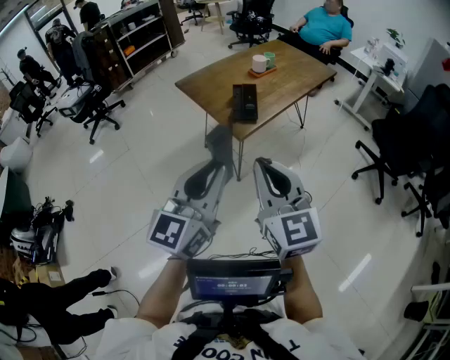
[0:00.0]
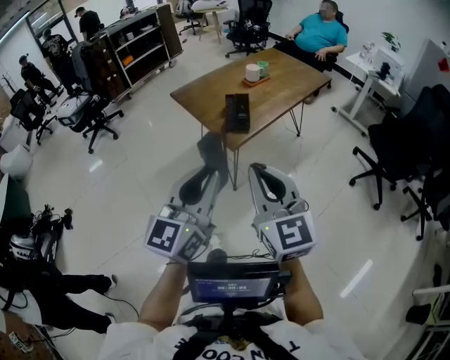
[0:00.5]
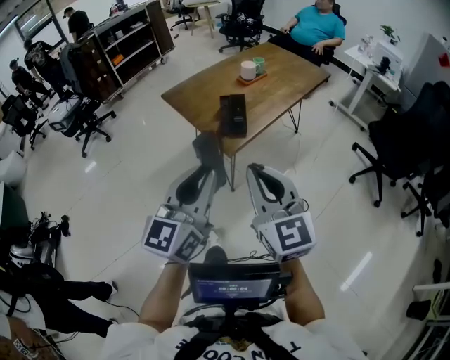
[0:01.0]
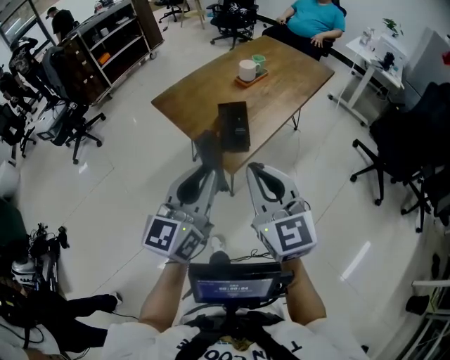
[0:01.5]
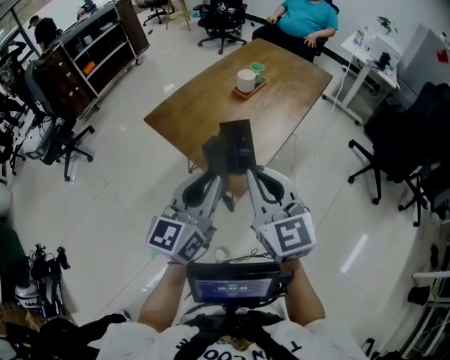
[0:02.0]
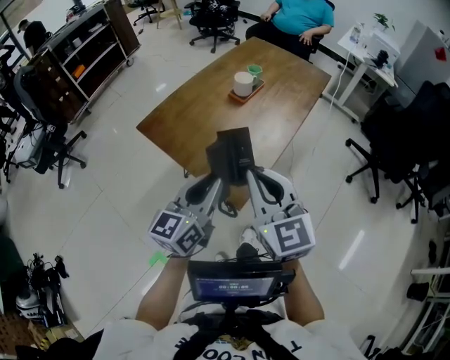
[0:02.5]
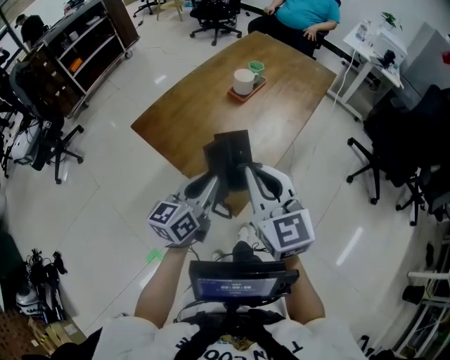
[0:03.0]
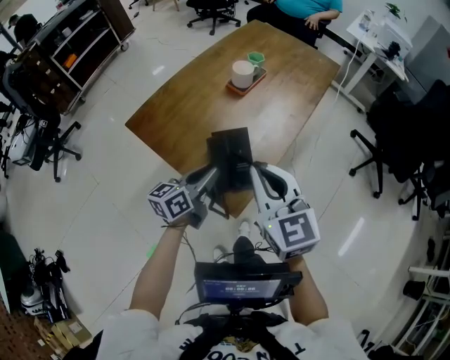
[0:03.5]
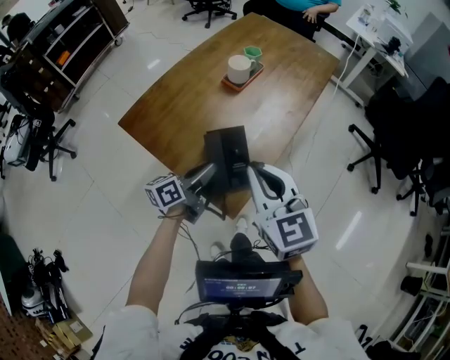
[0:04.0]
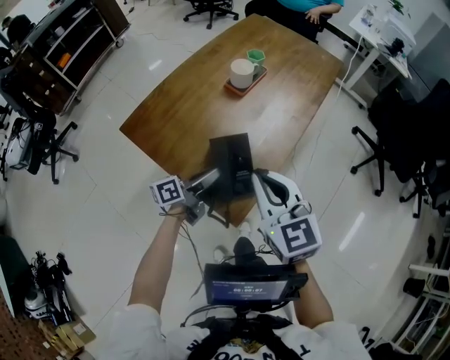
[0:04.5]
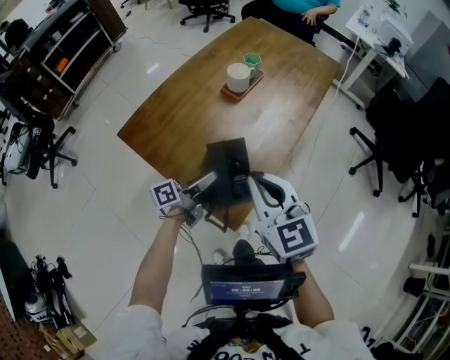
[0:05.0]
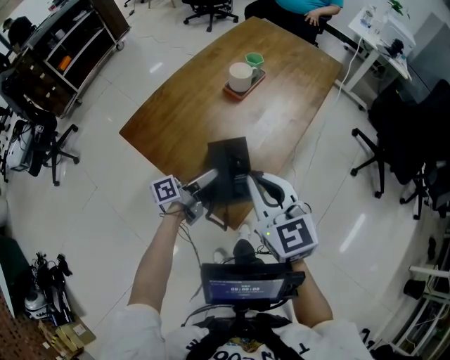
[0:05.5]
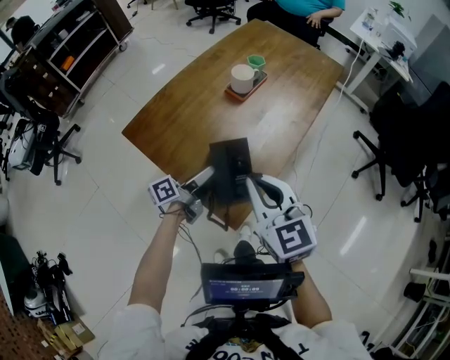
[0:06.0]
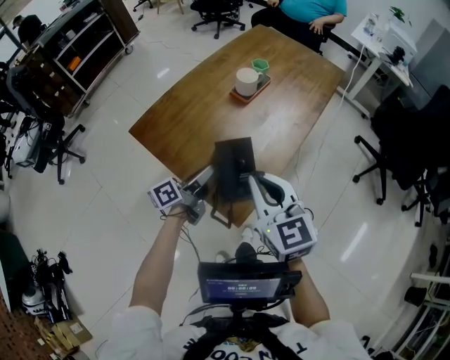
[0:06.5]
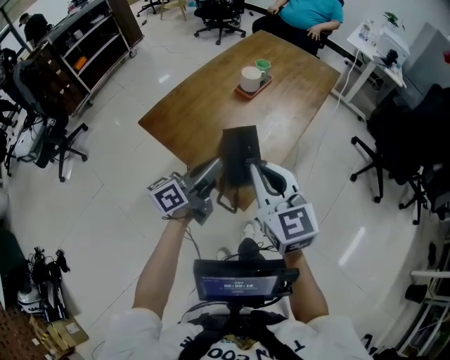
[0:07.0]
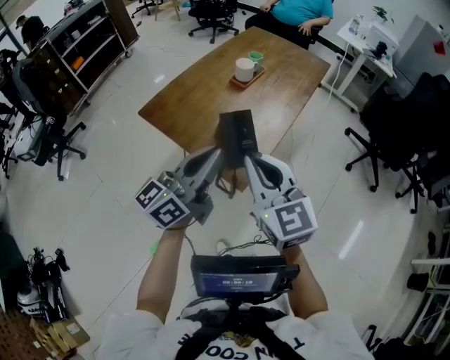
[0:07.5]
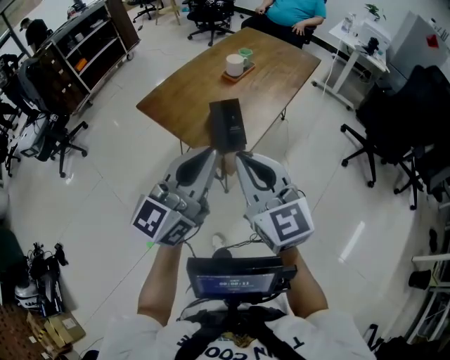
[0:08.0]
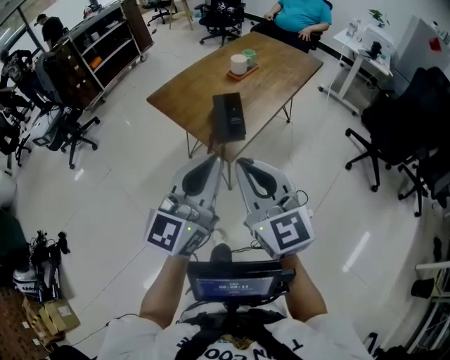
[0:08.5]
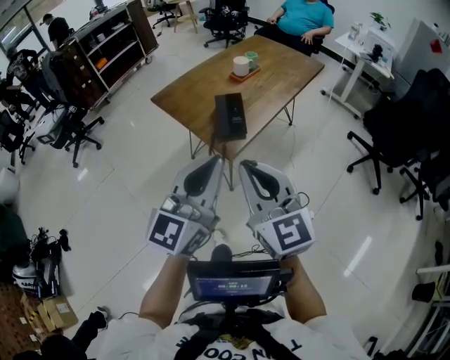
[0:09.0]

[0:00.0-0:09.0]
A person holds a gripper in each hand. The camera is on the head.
0:00.0 to 0:02.0: The two grippers go some 30 cm forward.
0:02.0 to 0:04.5: The right gripper is displaced forward and downward by some 20 cm. The left gripper shifts some 35 cm downward and forward, and rotates around the line of its fingers by about 50 degrees, counterclockwise from behind.
0:04.5 to 0:07.0: The left gripper heads upward and backward, covering approximately 15 cm, turns by about 20 degrees, and opens, then closes once more, while the right gripper is displaced backward by about 5 cm.
0:07.0 to 0:09.0: The left gripper goes about 35 cm backward and upward, and twists roughly 50 degrees clockwise, seen from behind; the right gripper goes roughly 25 cm backward.

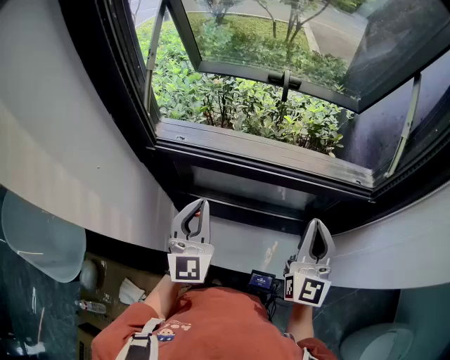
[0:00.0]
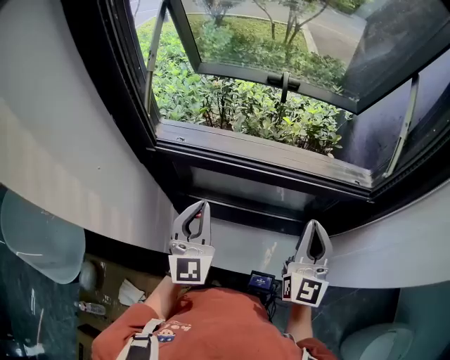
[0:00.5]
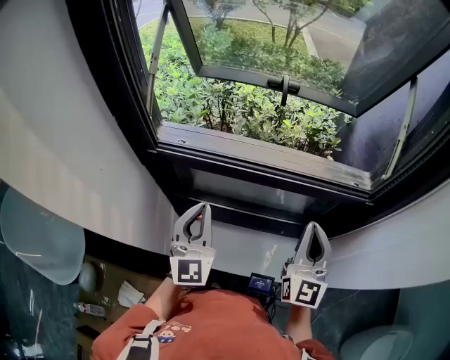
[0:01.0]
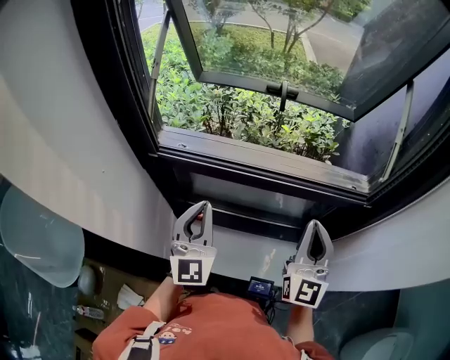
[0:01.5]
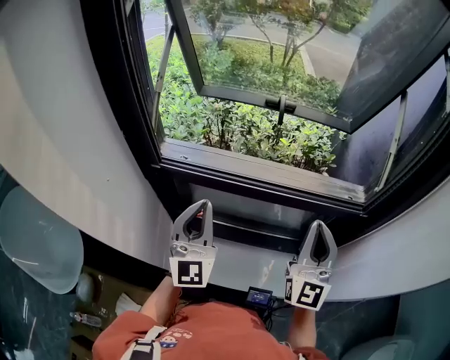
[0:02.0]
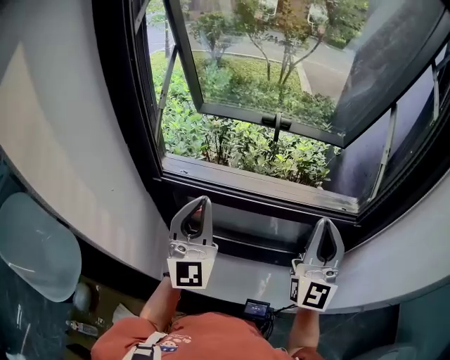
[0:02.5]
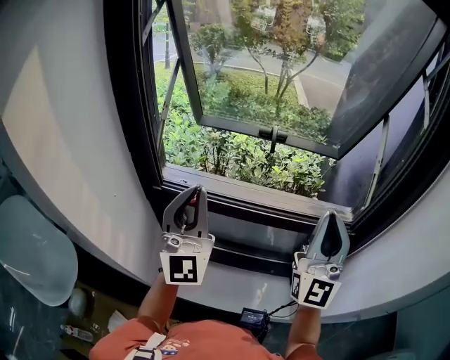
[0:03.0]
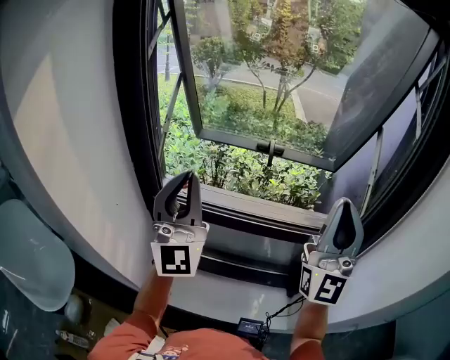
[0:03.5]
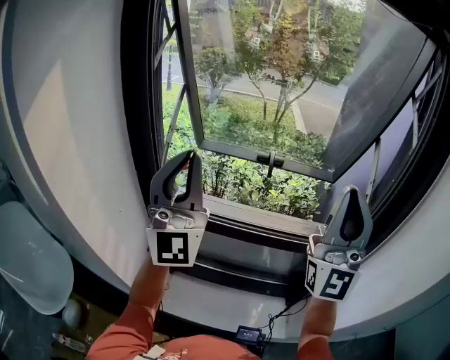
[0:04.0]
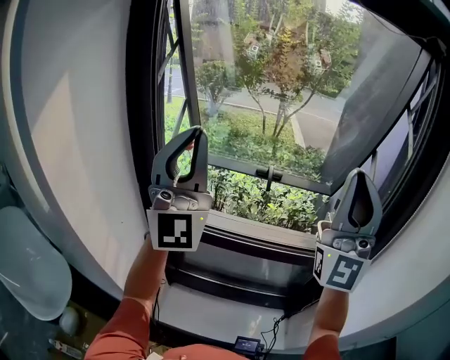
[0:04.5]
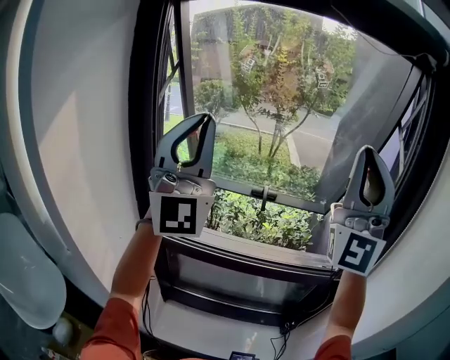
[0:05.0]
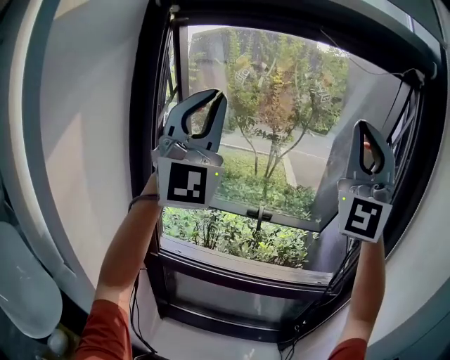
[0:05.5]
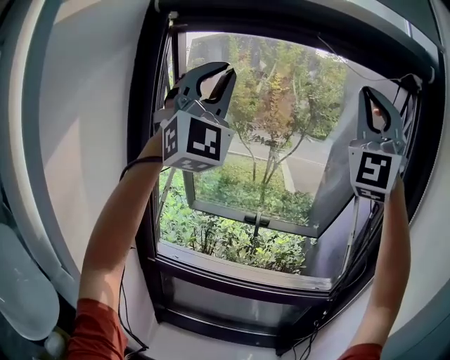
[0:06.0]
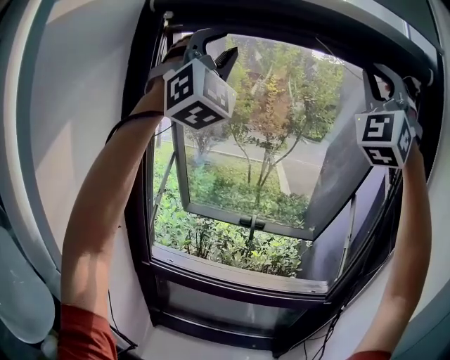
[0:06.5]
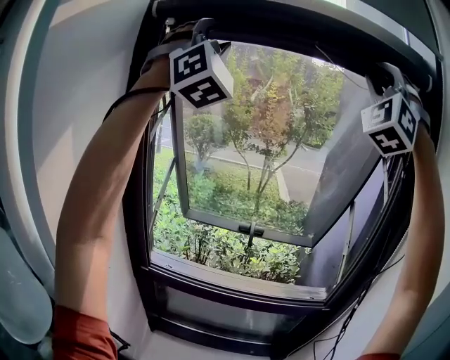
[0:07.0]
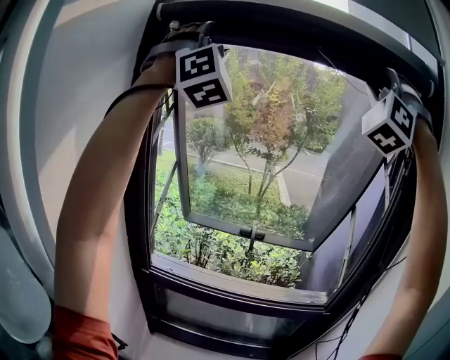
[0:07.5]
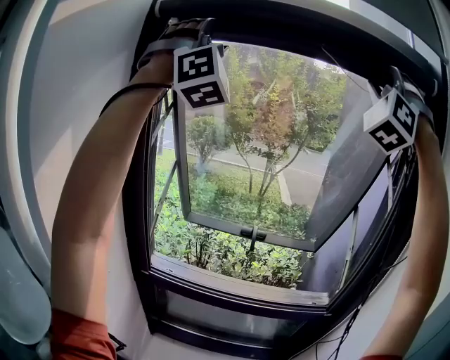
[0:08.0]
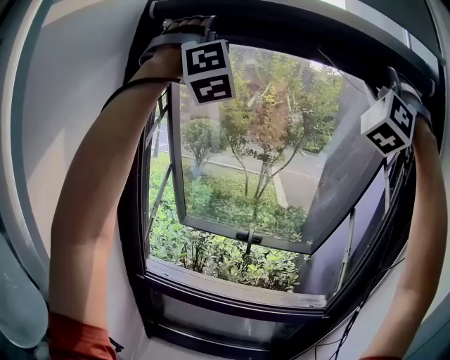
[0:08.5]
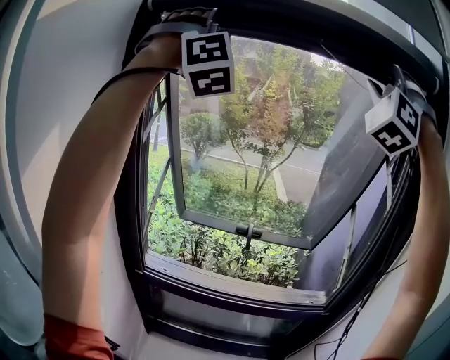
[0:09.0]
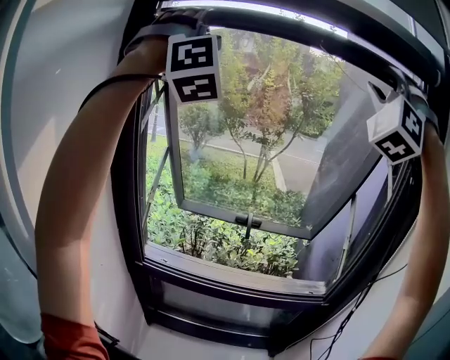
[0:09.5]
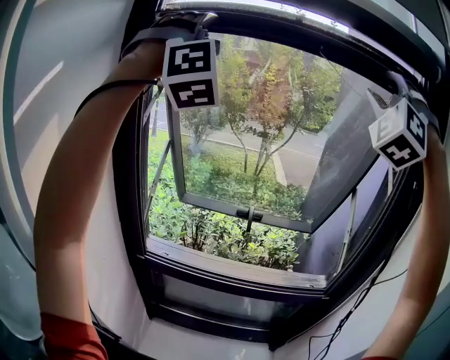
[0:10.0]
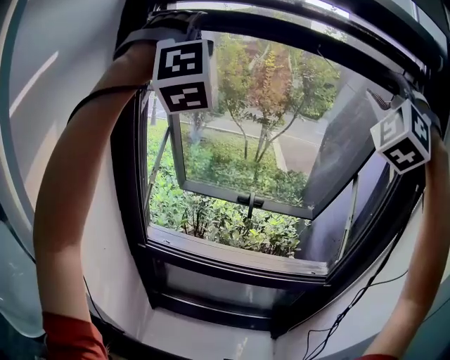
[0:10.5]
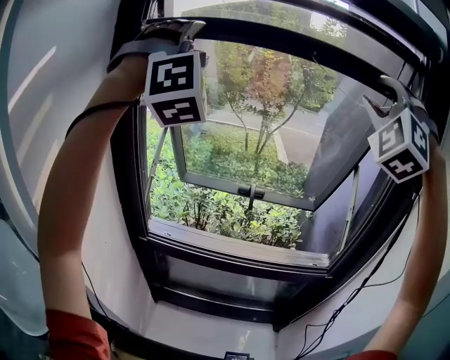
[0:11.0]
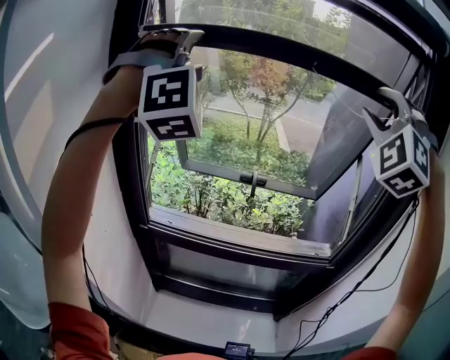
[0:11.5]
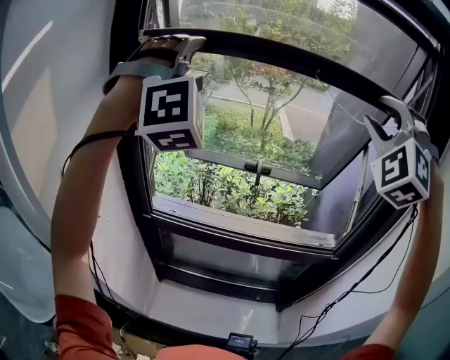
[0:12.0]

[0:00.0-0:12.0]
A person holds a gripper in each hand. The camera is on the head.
0:00.0 to 0:02.0: Both grippers travel together upward, roughly 5 cm.
0:02.0 to 0:04.0: Both grippers move upward, some 25 cm. The right gripper tips its fingers upward by roughly 30 degrees. The left gripper angles its fingers upward, by about 30 degrees.
0:04.0 to 0:06.0: The grippers both shift upward by some 30 cm. The left gripper swivels some 30 degrees. Meanwhile the right gripper rotates around the line of its fingers by some 40 degrees, counterclockwise from behind.
0:06.0 to 0:08.0: The right gripper travels forward, upward and to the right by about 10 cm, swivels about 40 degrees, and opens, while the left gripper heads upward and forward, covering some 10 cm, turns by roughly 40 degrees, and opens.
0:08.0 to 0:10.0: The grippers both shift downward by some 5 cm.
0:10.0 to 0:12.0: The two grippers go about 15 cm downward.

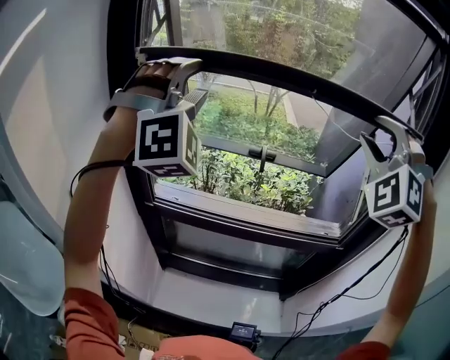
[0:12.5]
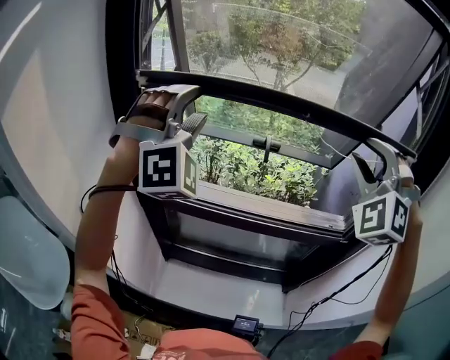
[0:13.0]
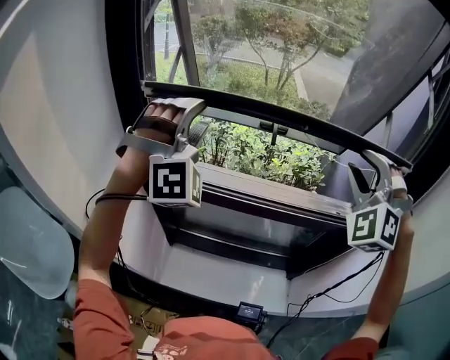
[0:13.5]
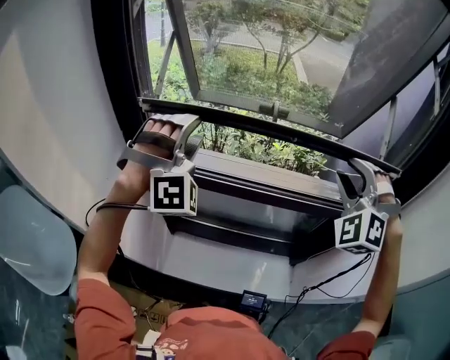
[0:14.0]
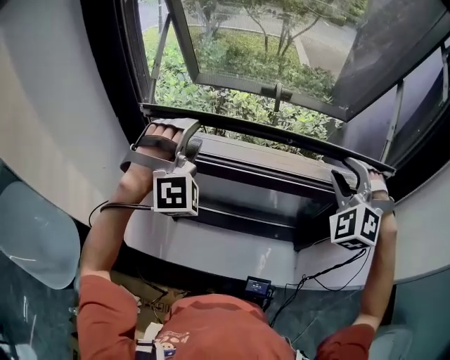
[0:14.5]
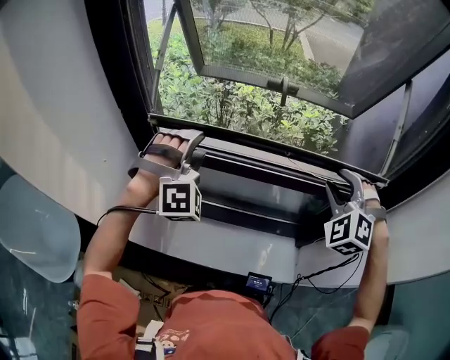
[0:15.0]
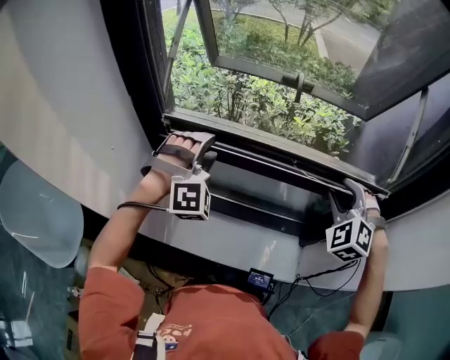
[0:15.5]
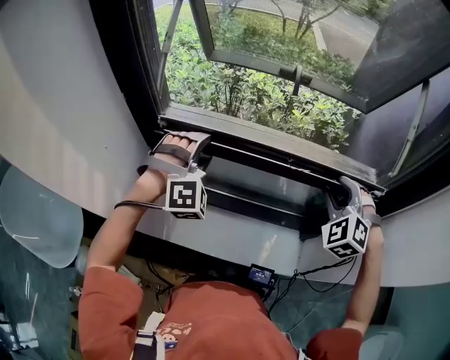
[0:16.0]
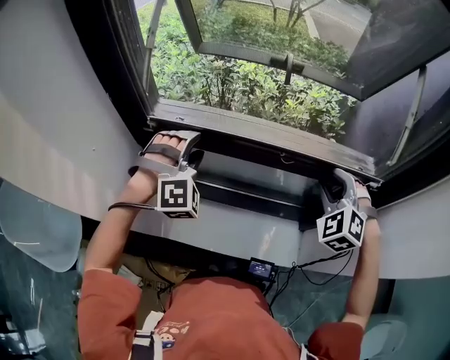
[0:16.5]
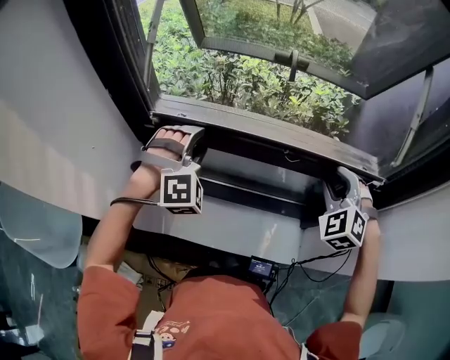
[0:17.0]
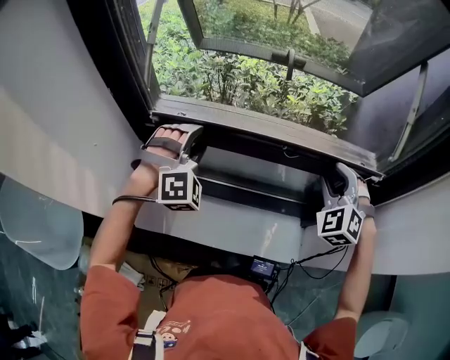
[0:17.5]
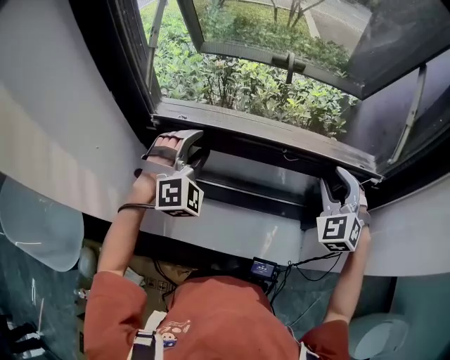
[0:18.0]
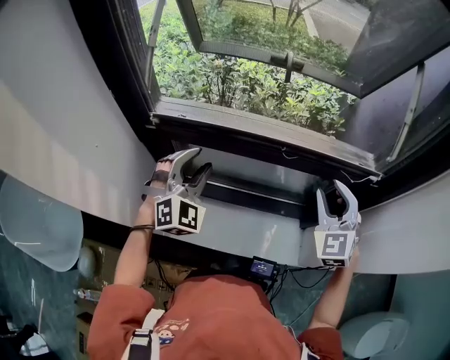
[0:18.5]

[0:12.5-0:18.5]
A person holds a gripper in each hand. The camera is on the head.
0:12.5 to 0:14.5: Both grippers move downward, about 30 cm. The left gripper swivels approximately 20 degrees. Meanwhile the right gripper rotates approximately 20 degrees.
0:14.5 to 0:16.5: The two grippers go roughly 15 cm downward.
0:16.5 to 0:18.5: The left gripper swivels about 30 degrees. Meanwhile the right gripper swivels about 30 degrees.
